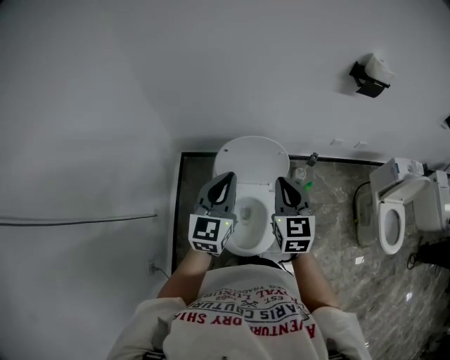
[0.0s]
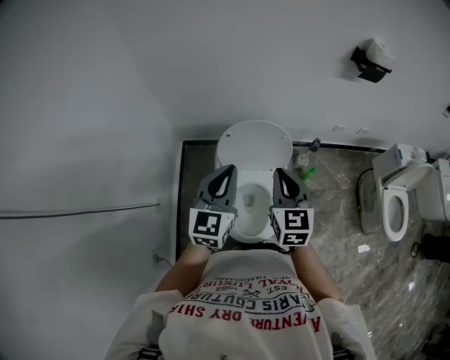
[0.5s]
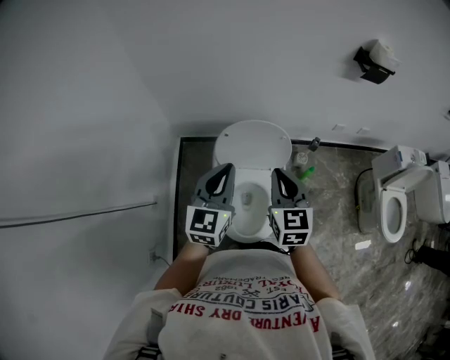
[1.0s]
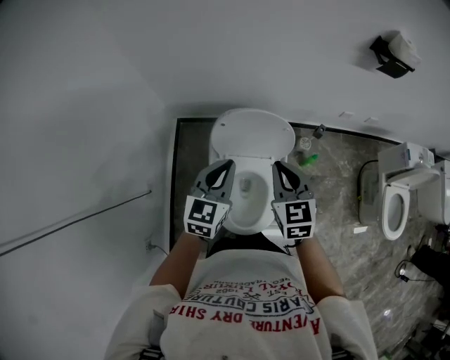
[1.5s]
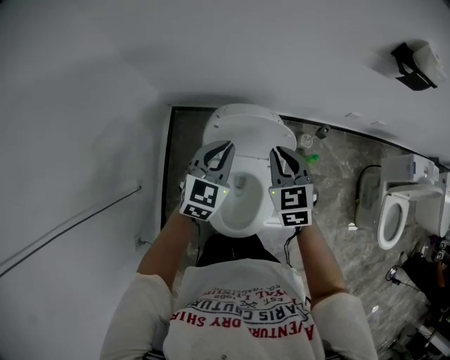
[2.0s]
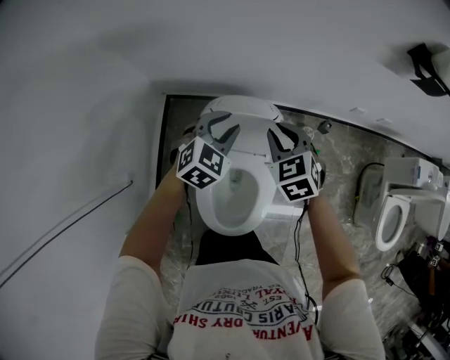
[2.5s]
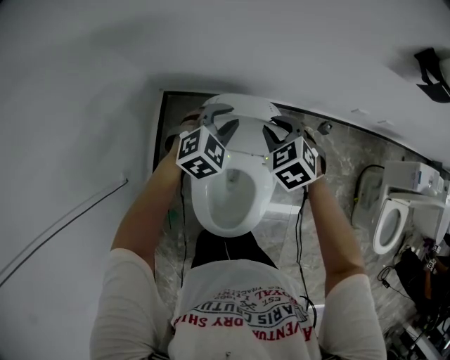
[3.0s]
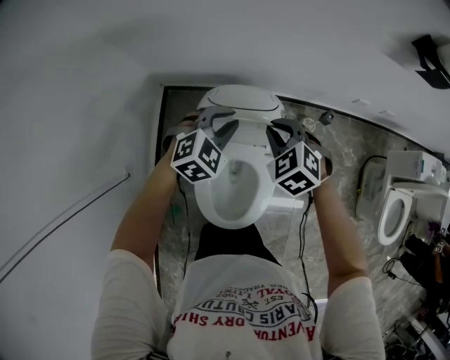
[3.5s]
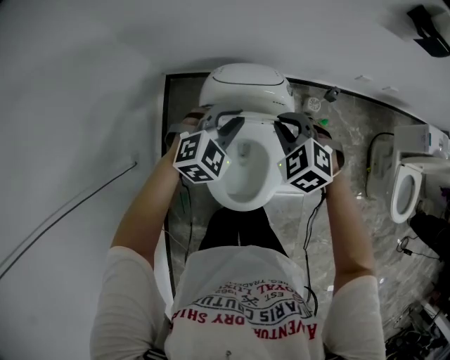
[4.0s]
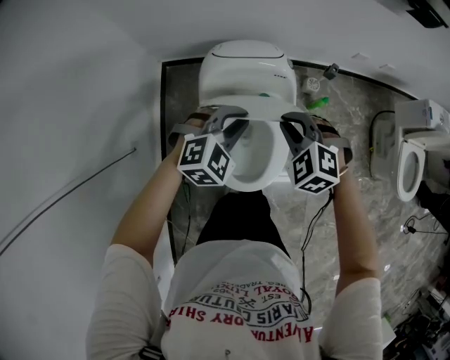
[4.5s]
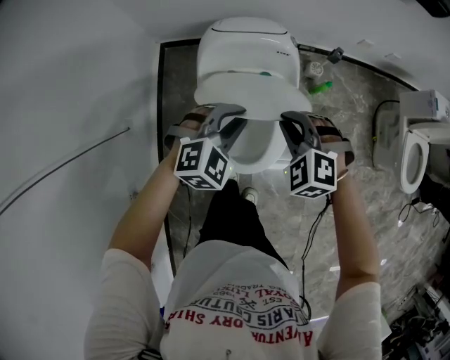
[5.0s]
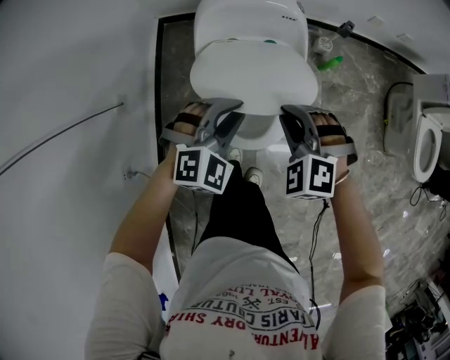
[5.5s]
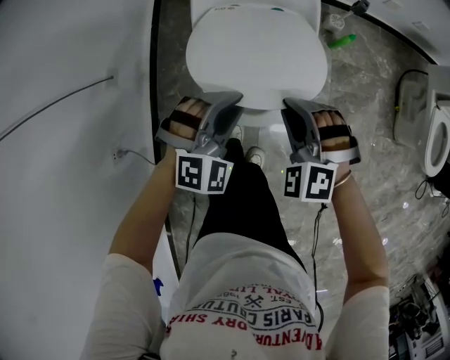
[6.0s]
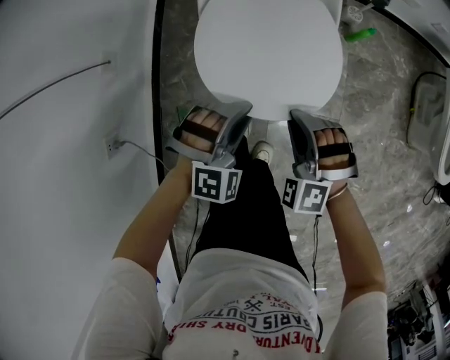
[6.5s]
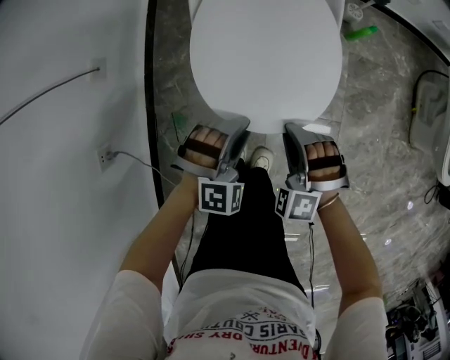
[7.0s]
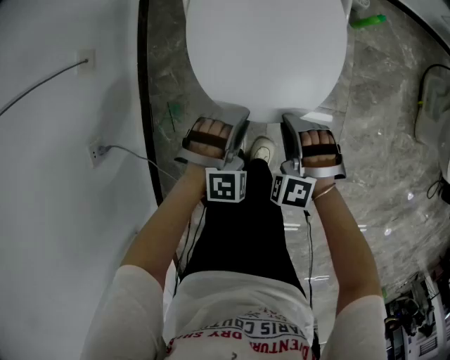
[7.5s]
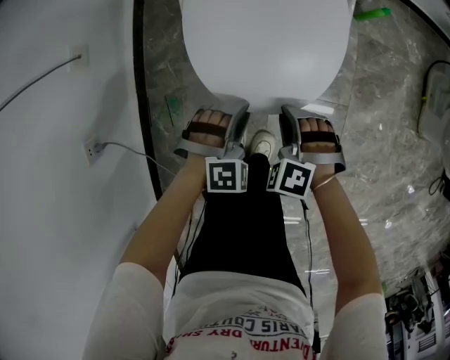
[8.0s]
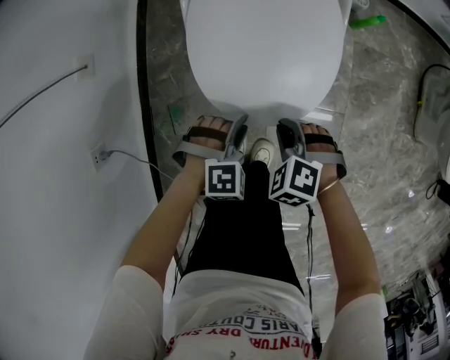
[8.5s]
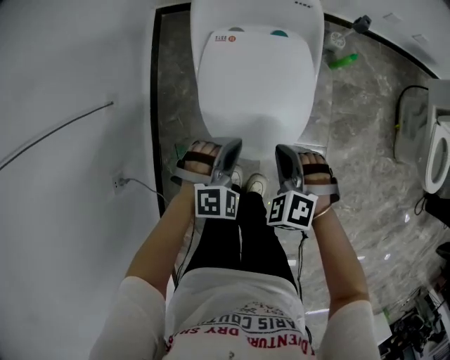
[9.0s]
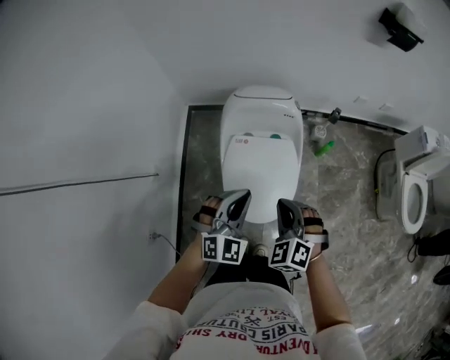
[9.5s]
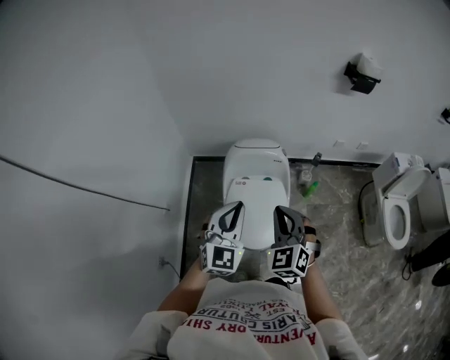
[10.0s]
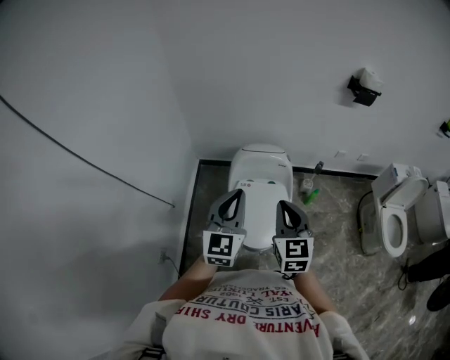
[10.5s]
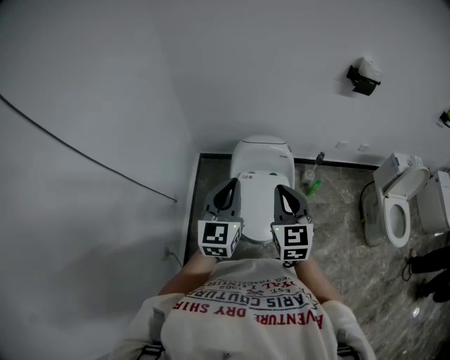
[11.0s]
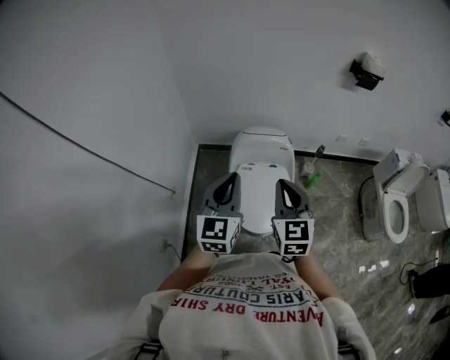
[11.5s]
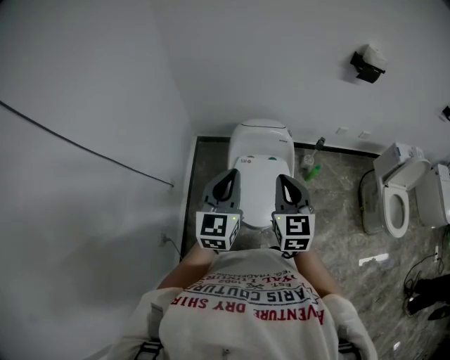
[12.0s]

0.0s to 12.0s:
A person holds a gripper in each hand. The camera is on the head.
0.0s to 2.0s: The left gripper moves downward and forward, some 20 cm, and rotates some 20 degrees. The right gripper goes some 20 cm forward and downward, and swivels approximately 20 degrees.
2.0s to 4.0s: Both grippers travel together downward, roughly 10 cm. The left gripper travels forward and back again, approximately 10 cm each way, and changes its angle by some 40 degrees; the right gripper reaches about 10 cm forward, then returns, and turns by roughly 40 degrees.
4.0s to 6.0s: Both grippers move backward and downward, some 30 cm. The right gripper swivels roughly 20 degrees.
6.0s to 8.0s: The grippers both shift downward by about 25 cm.
8.0s to 10.0s: Both grippers move upward, roughly 60 cm. The right gripper angles its fingers upward, by approximately 40 degrees. The left gripper tips its fingers upward by approximately 50 degrees, and closes.
10.0s to 12.0s: The right gripper shifts by about 5 cm, and turns by roughly 30 degrees; the left gripper goes roughly 5 cm to the left, and turns by about 20 degrees.

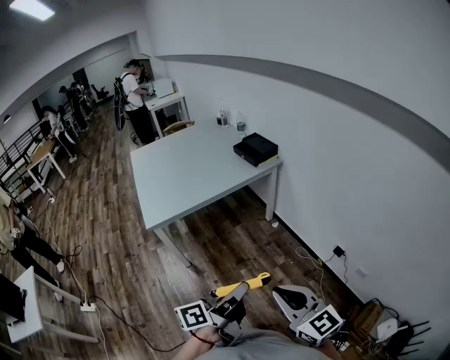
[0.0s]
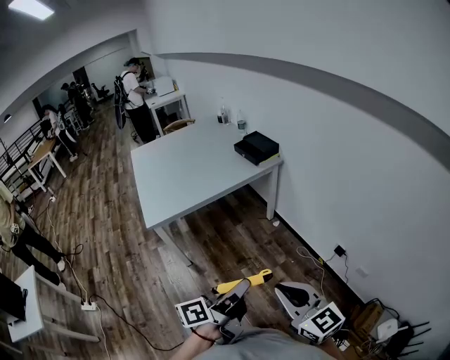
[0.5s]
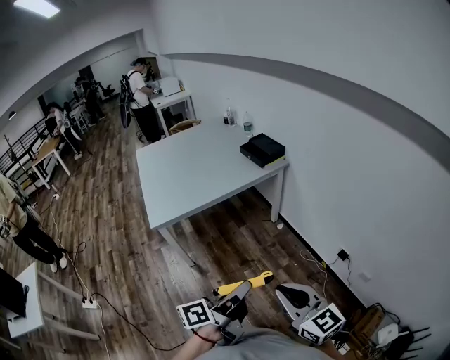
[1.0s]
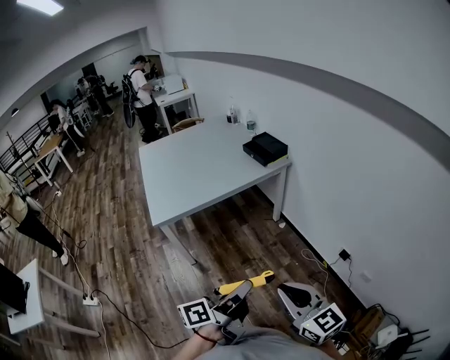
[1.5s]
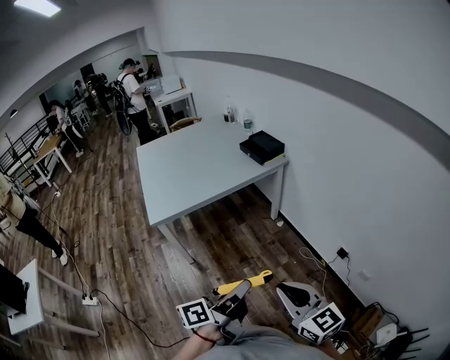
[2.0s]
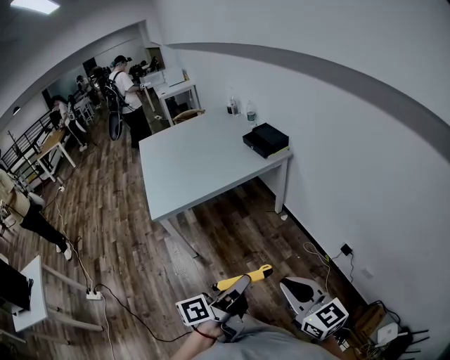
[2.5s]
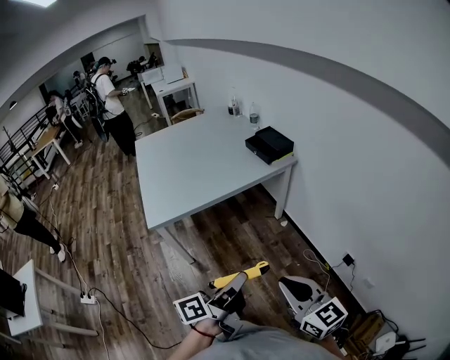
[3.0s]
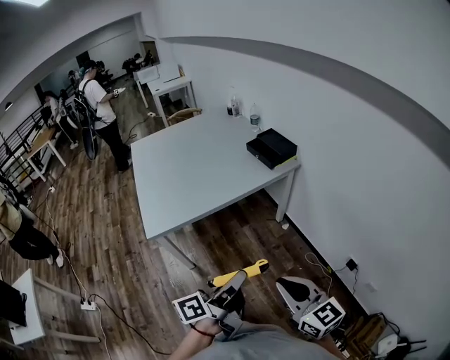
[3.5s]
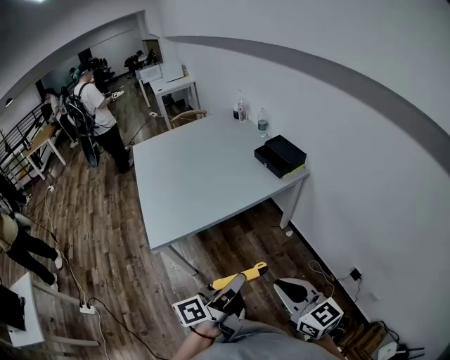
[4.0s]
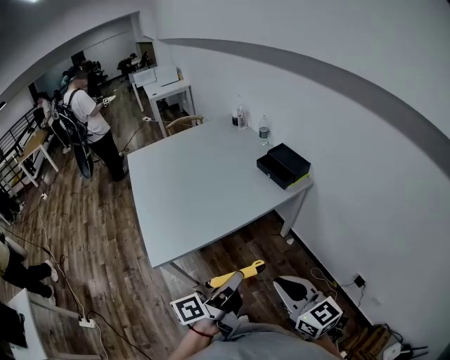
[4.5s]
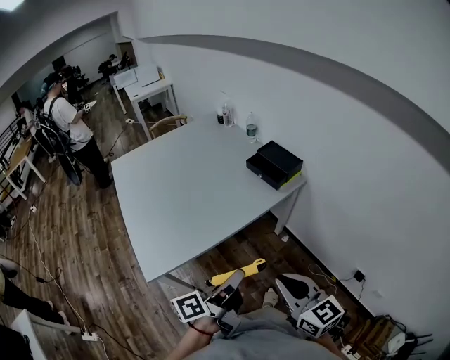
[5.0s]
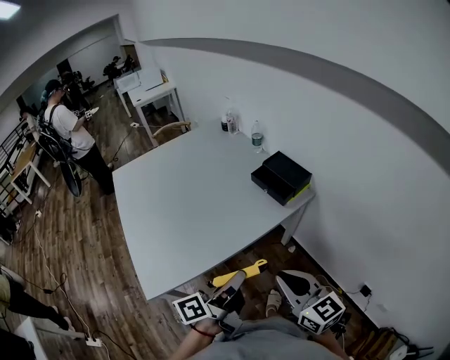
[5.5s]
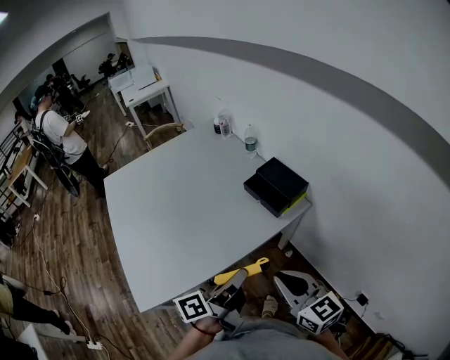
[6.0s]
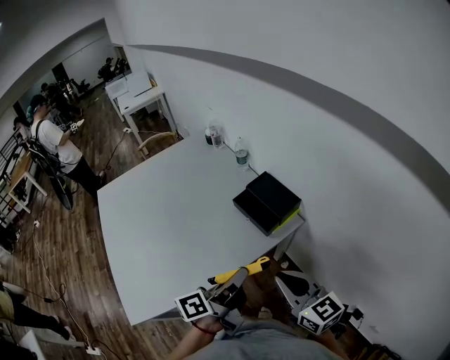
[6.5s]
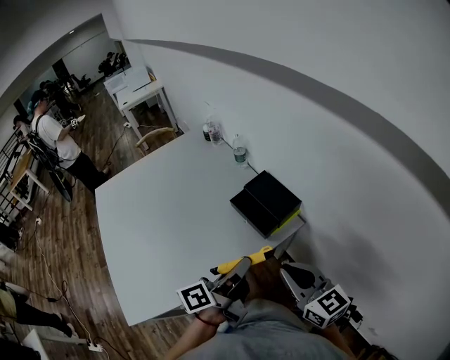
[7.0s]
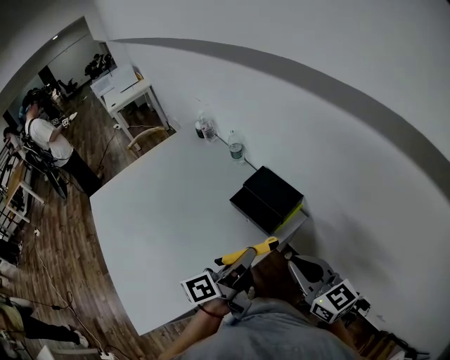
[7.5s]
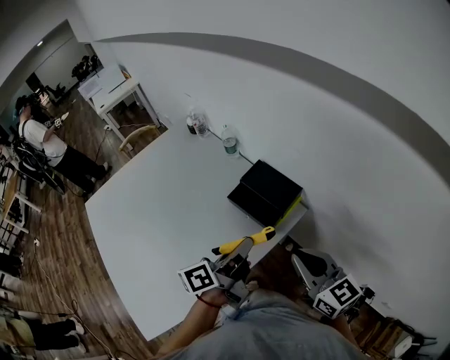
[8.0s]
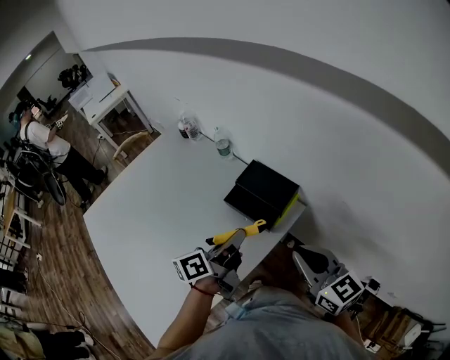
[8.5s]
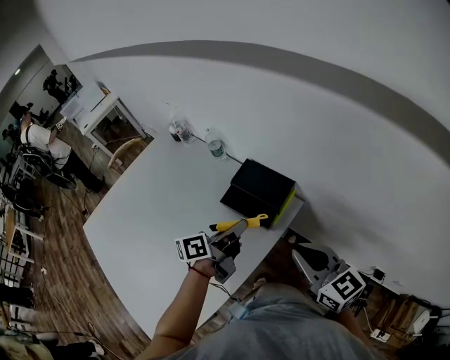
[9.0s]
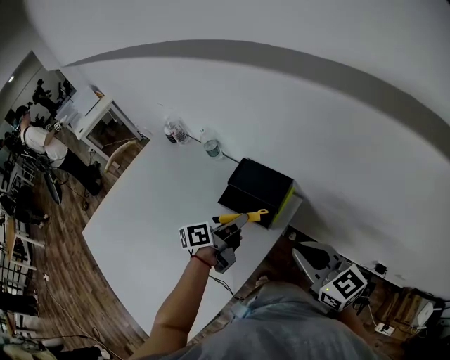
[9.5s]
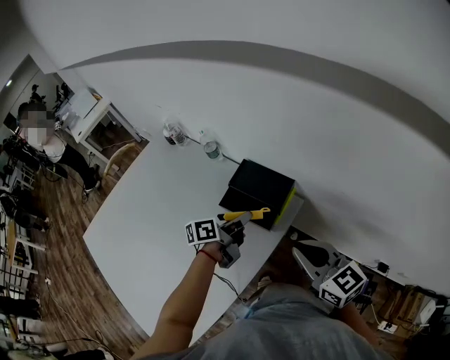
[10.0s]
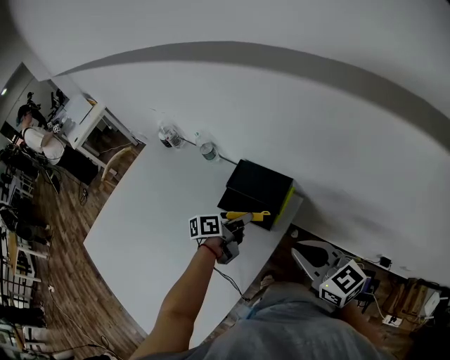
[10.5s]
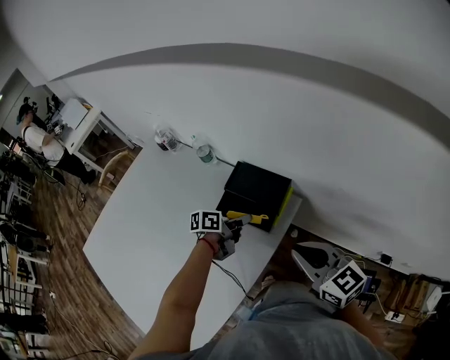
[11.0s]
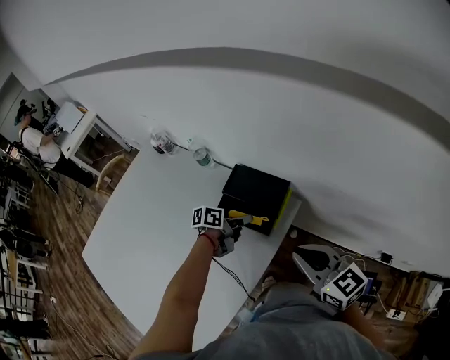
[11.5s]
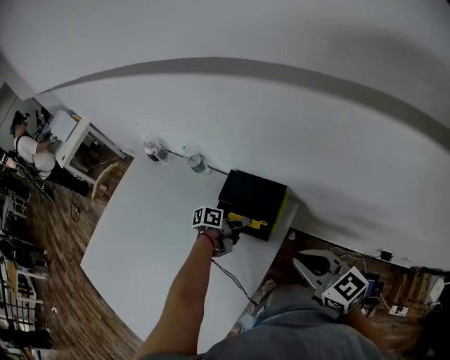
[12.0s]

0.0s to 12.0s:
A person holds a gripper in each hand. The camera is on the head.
0.0s to 2.0s: The grippers move only a little.
2.0s to 4.0s: The grippers both shift forward and to the left by some 25 cm.
4.0s to 6.0s: Both grippers move forward, roughly 30 cm.
6.0s to 8.0s: The right gripper is displaced forward and to the right by approximately 20 cm; the left gripper goes approximately 20 cm forward.
8.0s to 10.0s: The left gripper goes approximately 15 cm forward and downward, and rotates about 30 degrees.
10.0s to 12.0s: The left gripper is displaced downward by approximately 10 cm, and turns by approximately 30 degrees.

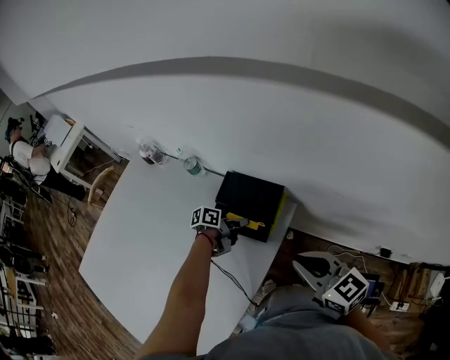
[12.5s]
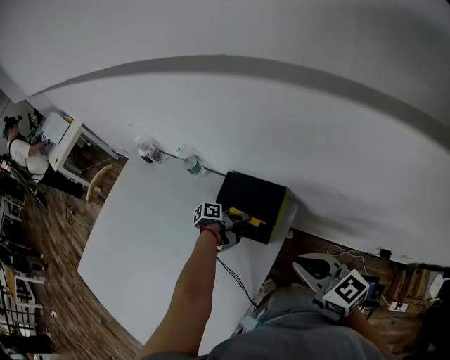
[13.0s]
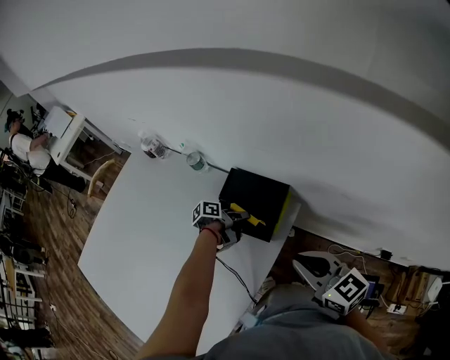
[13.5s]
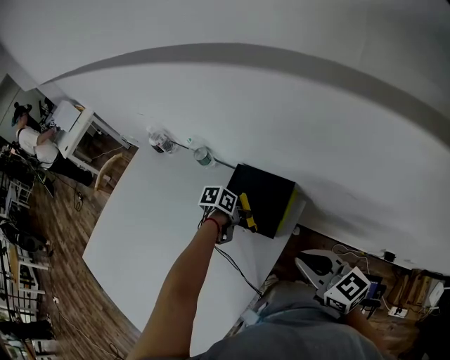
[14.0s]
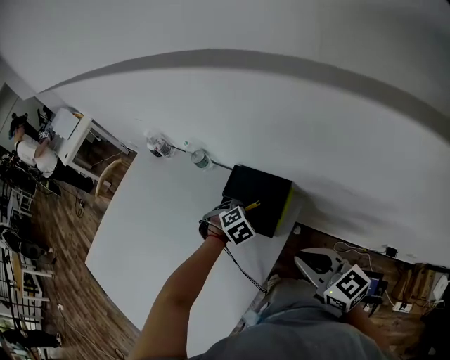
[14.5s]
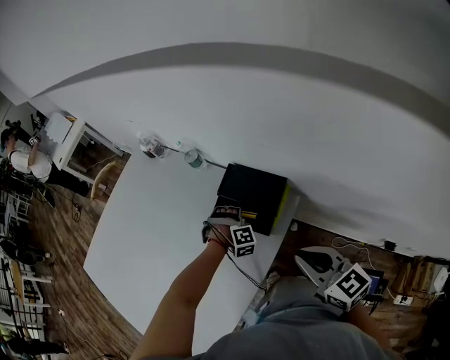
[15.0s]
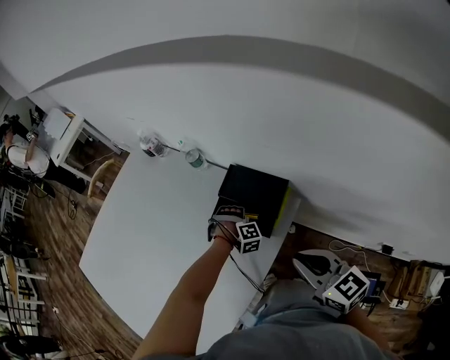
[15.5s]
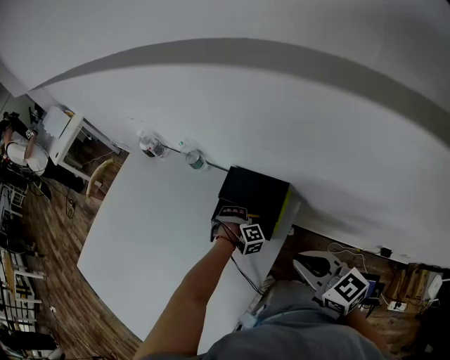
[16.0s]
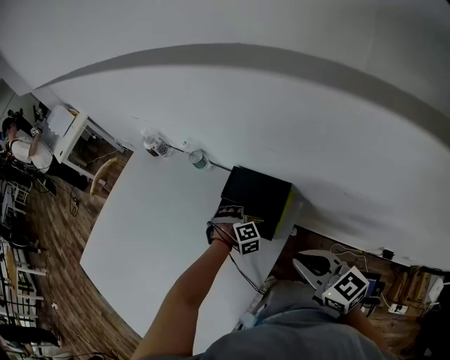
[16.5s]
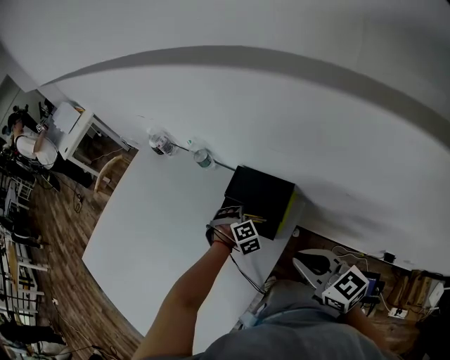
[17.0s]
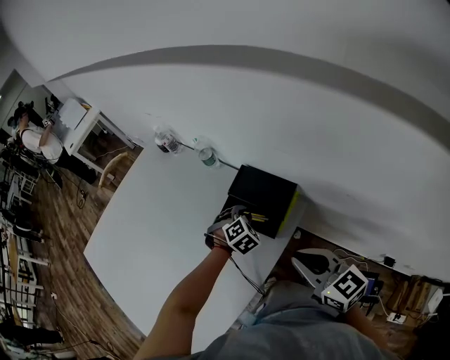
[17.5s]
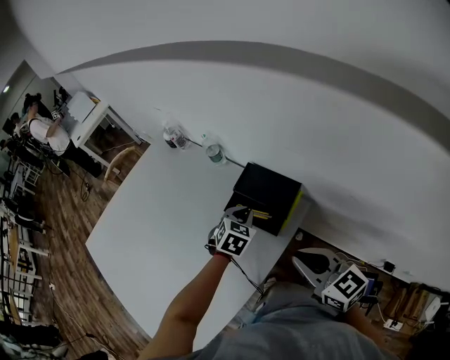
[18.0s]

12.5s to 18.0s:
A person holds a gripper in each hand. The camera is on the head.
12.5s to 14.5s: The left gripper twists some 80 degrees clockwise, seen from behind.
14.5s to 16.0s: The left gripper is displaced downward by roughly 10 cm, and rotates some 40 degrees.
16.0s to 18.0s: The left gripper is displaced upward by approximately 15 cm, and rolls counterclockwise, seen from behind, by about 70 degrees.
